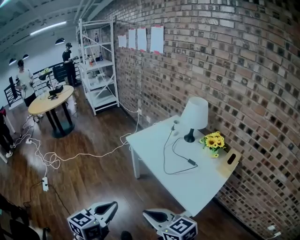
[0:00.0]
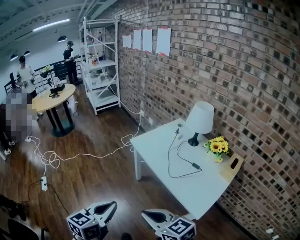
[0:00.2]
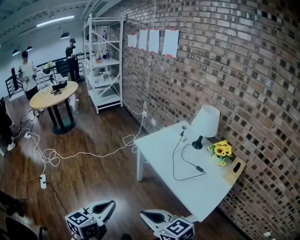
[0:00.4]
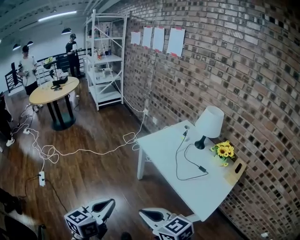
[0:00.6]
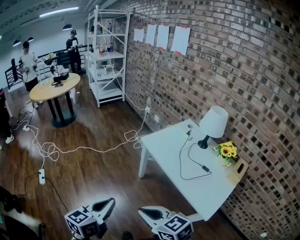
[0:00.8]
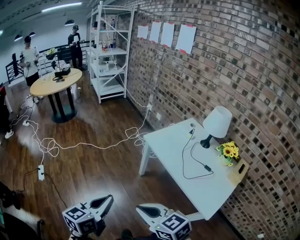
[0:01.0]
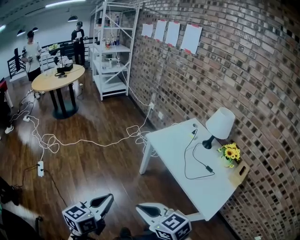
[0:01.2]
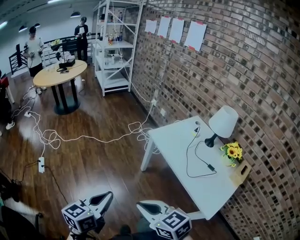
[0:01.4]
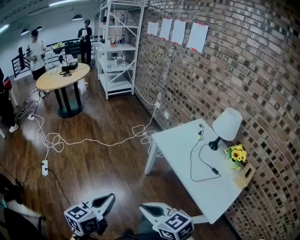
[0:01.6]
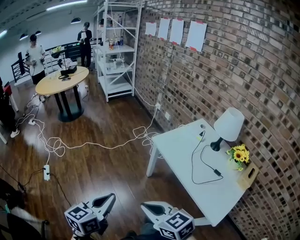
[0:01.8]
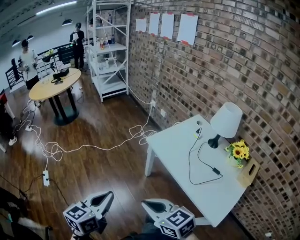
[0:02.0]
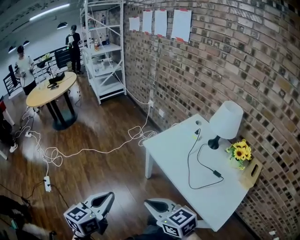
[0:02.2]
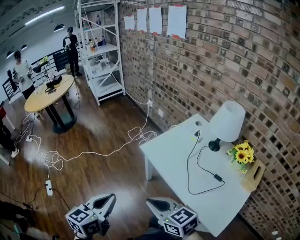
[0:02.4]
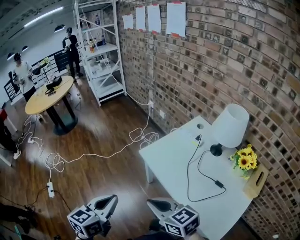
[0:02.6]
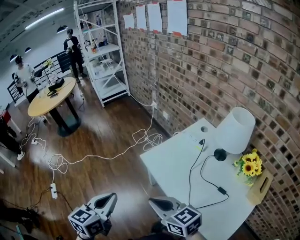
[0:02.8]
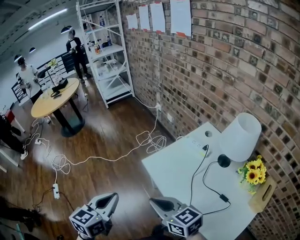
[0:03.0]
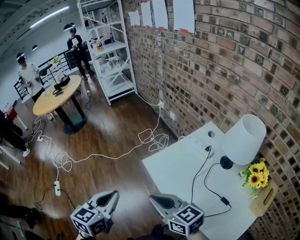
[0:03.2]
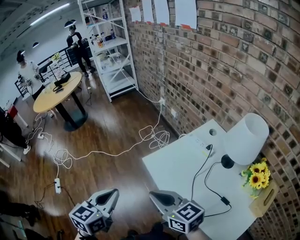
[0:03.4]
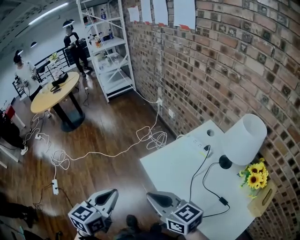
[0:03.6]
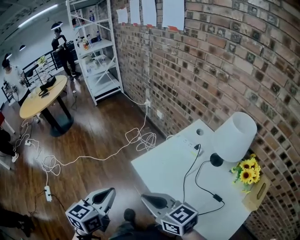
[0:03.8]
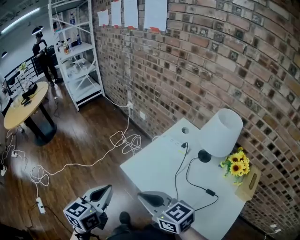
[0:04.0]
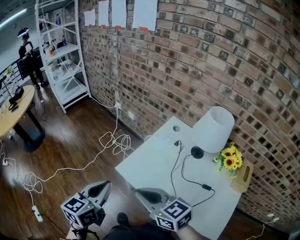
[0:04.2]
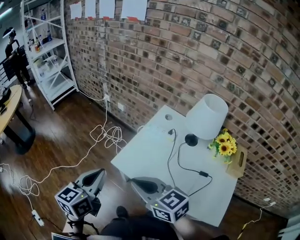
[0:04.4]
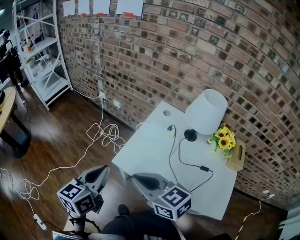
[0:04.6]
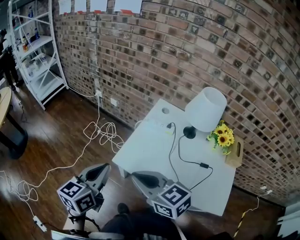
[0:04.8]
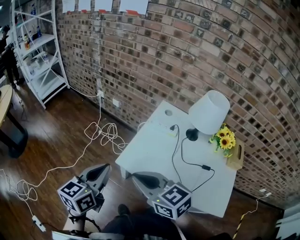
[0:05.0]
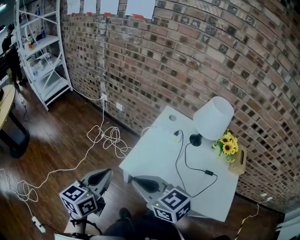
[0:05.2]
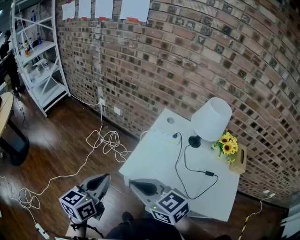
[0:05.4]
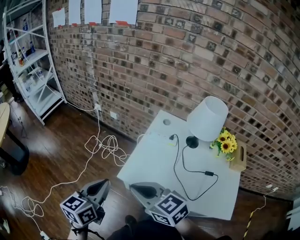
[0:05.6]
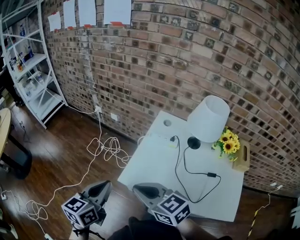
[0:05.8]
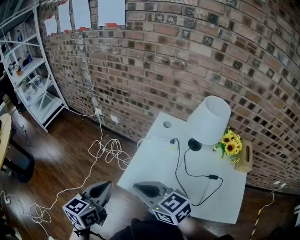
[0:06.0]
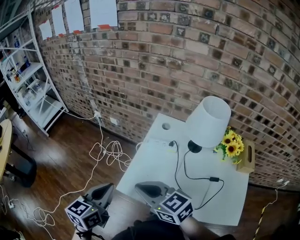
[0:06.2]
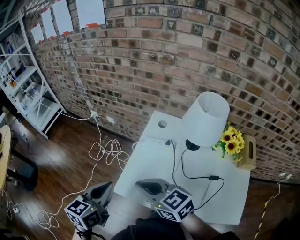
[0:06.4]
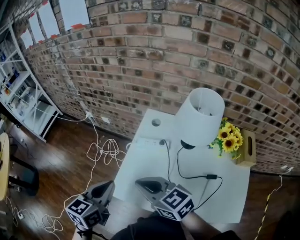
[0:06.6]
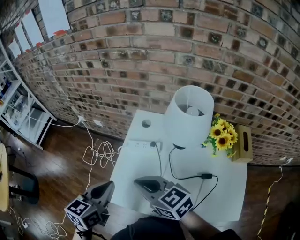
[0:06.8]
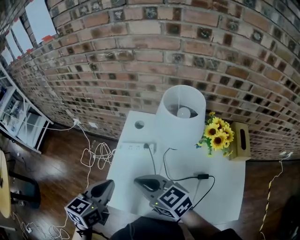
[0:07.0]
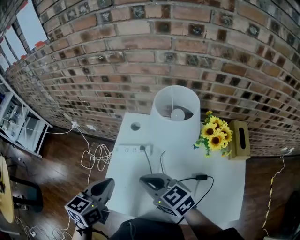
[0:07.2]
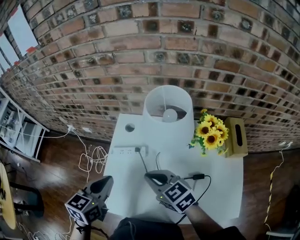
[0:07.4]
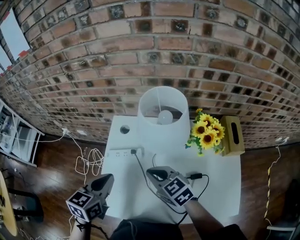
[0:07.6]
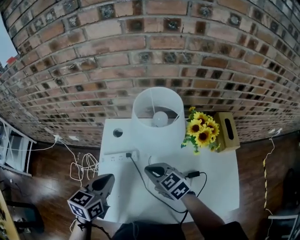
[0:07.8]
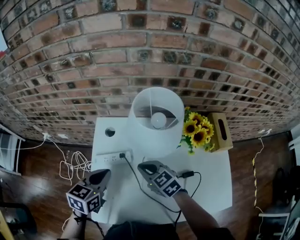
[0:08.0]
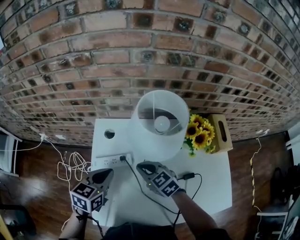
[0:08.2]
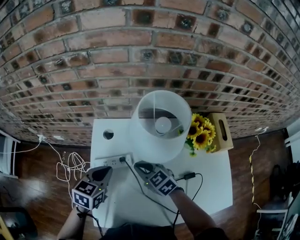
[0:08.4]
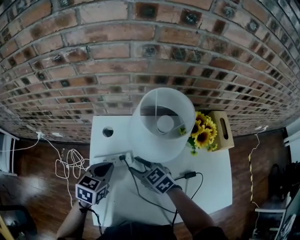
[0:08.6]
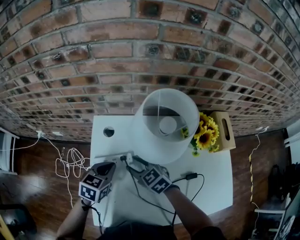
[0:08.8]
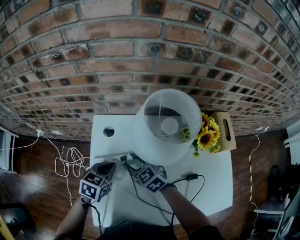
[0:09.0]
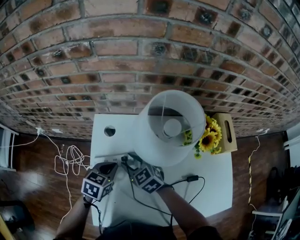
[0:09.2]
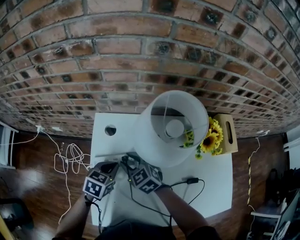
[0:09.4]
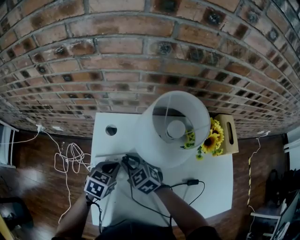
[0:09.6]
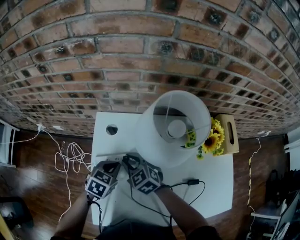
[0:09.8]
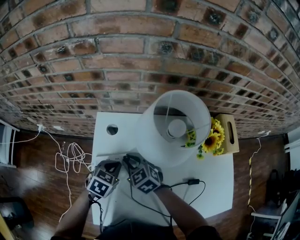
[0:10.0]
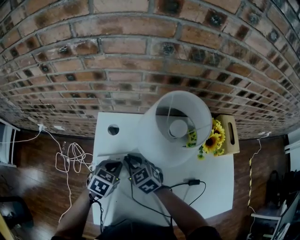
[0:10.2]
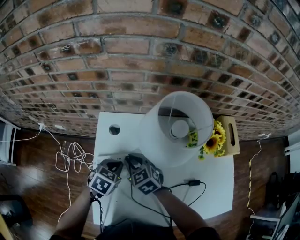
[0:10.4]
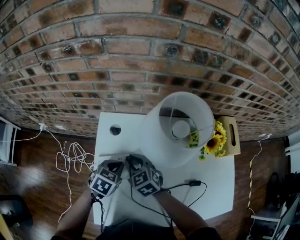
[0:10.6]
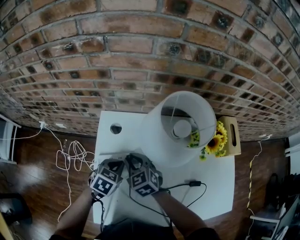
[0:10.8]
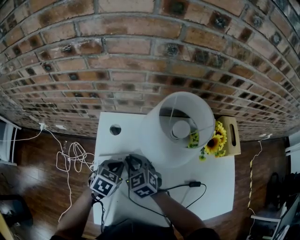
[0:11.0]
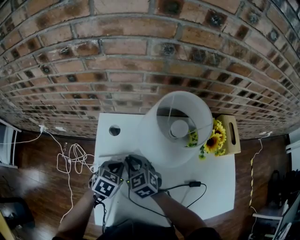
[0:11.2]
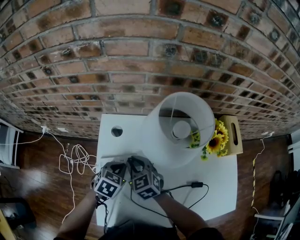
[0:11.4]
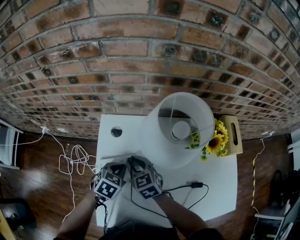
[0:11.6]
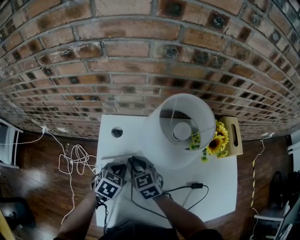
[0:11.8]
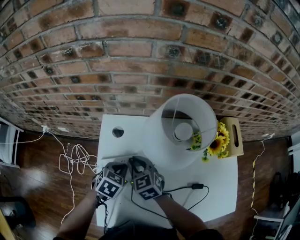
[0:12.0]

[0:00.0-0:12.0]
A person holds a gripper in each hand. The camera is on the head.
0:00.0 to 0:01.6: Both grippers move to the left and forward, some 20 cm.
0:01.6 to 0:03.0: Both grippers travel together forward and to the right, approximately 30 cm.
0:03.0 to 0:04.4: The left gripper goes roughly 15 cm forward, and swivels approximately 20 degrees. Meanwhile the right gripper moves forward, approximately 10 cm, and changes its angle by about 20 degrees.
0:04.4 to 0:06.0: Both grippers travel together forward, approximately 10 cm.
0:06.0 to 0:07.6: The left gripper shifts some 25 cm to the right and forward, and changes its angle by approximately 30 degrees. Meanwhile the right gripper is displaced to the right, forward and downward by some 30 cm, and changes its angle by approximately 20 degrees.
0:07.6 to 0:09.0: The left gripper heads downward and forward, covering roughly 20 cm, and swivels about 20 degrees. The right gripper travels forward, downward and to the left by about 15 cm, and opens its fingers.
0:09.0 to 0:10.4: The right gripper closes its fingers.
0:10.4 to 0:12.0: The grippers move only a little.

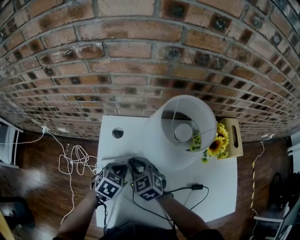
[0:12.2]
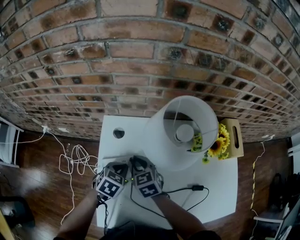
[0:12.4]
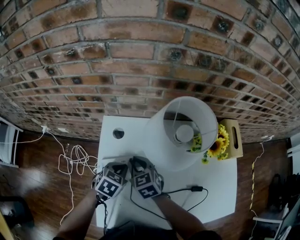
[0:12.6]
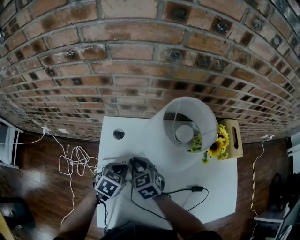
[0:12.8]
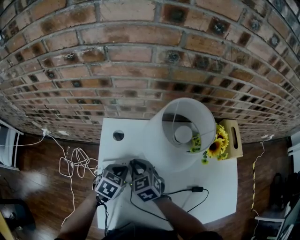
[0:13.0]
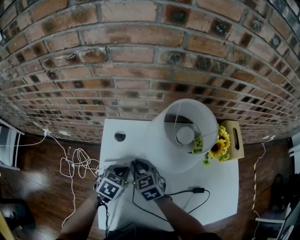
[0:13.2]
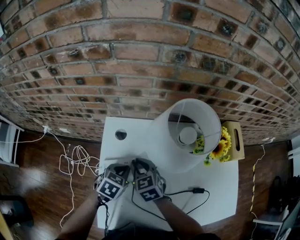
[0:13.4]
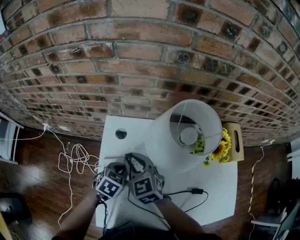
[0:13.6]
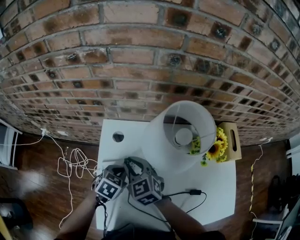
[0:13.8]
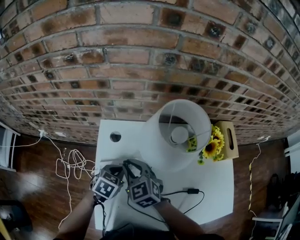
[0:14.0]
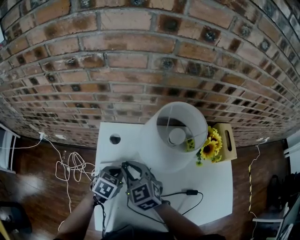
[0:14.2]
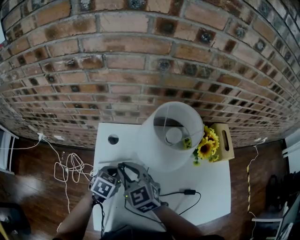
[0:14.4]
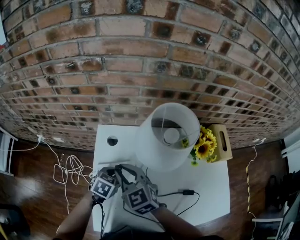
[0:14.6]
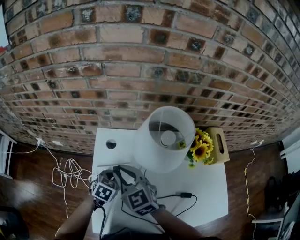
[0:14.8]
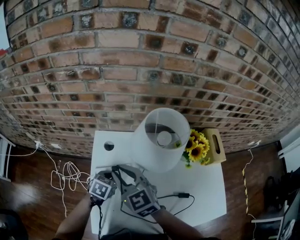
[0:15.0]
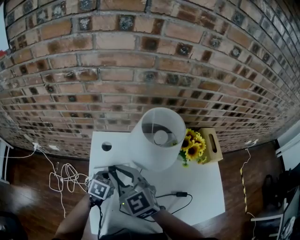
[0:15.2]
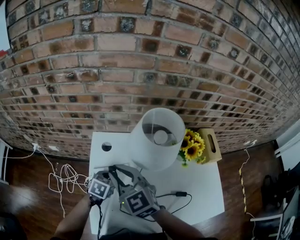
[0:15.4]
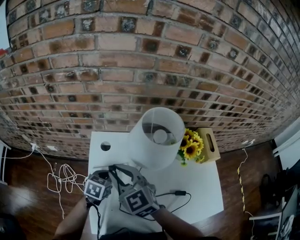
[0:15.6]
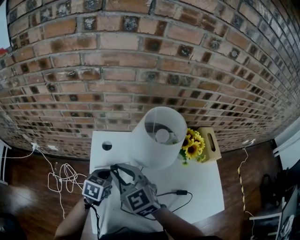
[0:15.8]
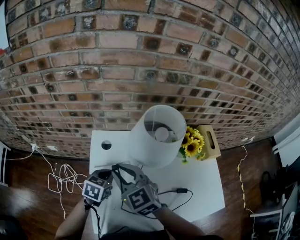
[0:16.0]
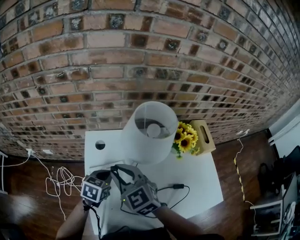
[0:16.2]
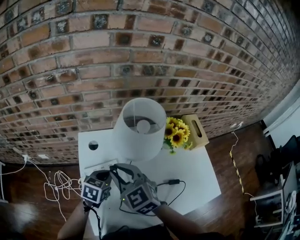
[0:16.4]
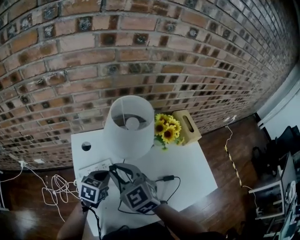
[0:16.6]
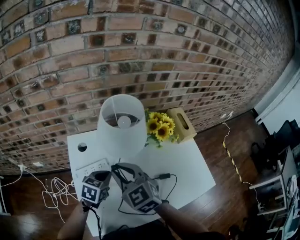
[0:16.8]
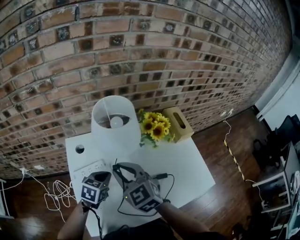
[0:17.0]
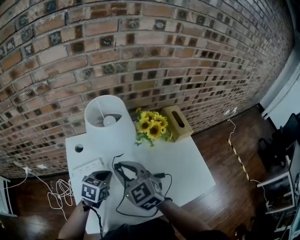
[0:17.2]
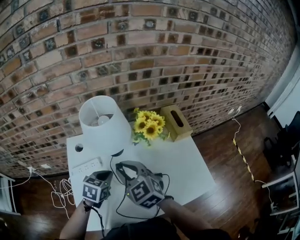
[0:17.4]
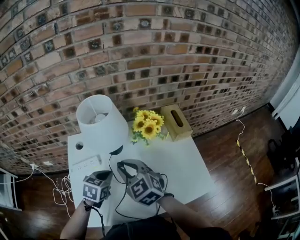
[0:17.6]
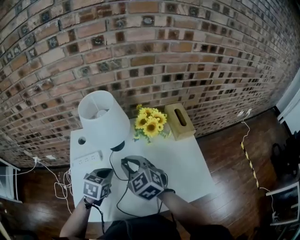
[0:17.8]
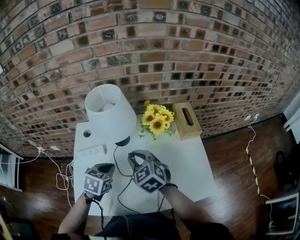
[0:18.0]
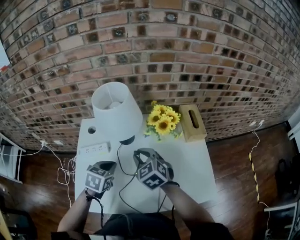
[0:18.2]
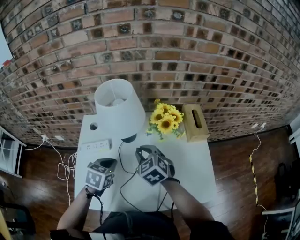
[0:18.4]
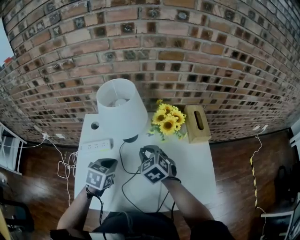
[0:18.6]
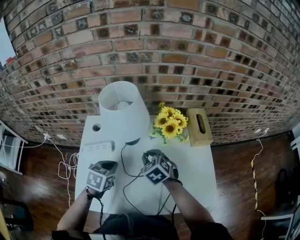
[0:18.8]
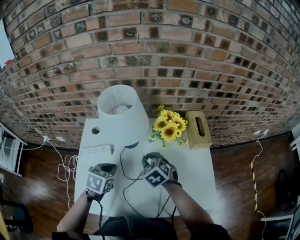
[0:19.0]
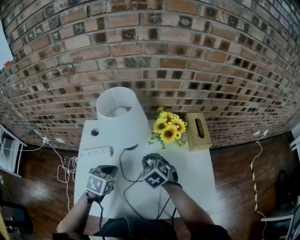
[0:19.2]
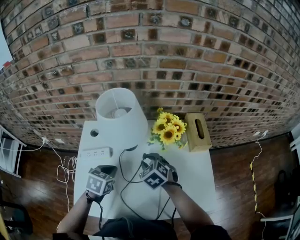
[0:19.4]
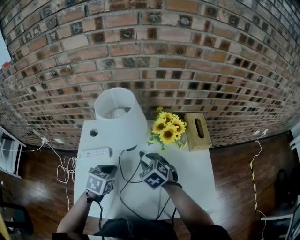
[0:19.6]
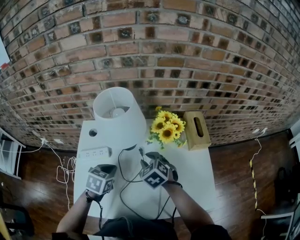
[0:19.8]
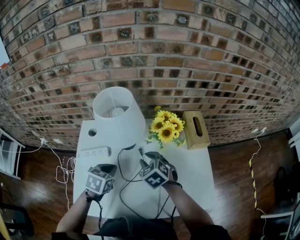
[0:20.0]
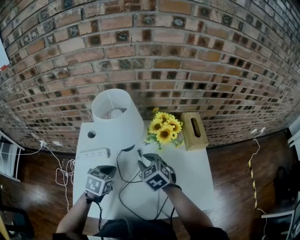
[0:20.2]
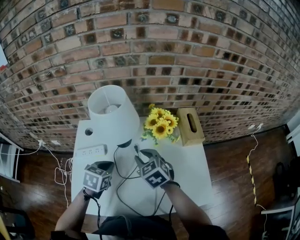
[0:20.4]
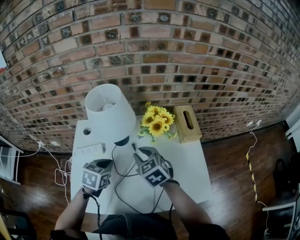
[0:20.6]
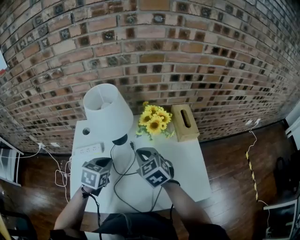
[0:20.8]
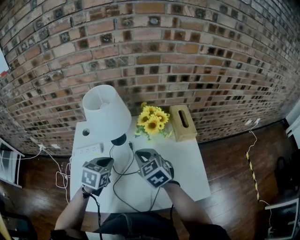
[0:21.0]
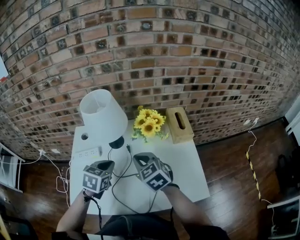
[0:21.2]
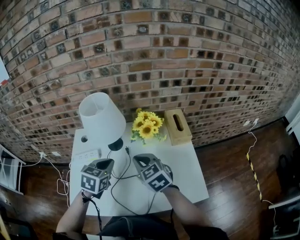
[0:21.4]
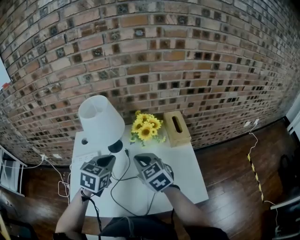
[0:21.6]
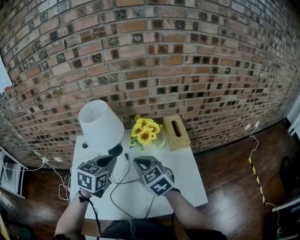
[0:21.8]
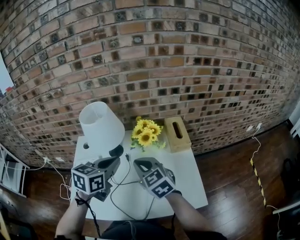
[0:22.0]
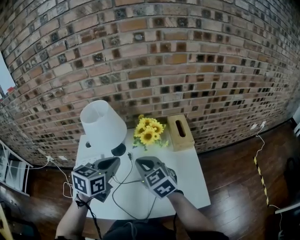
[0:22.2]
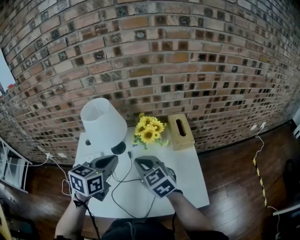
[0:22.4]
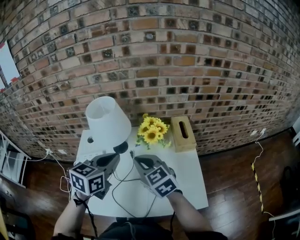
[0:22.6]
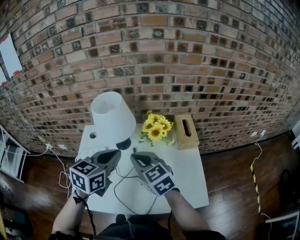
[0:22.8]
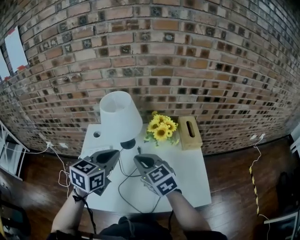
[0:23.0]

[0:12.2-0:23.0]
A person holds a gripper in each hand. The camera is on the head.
0:12.2 to 0:13.8: The right gripper shifts by some 5 cm.
0:13.8 to 0:15.2: The right gripper is displaced upward by some 15 cm.
0:15.2 to 0:16.8: The right gripper travels to the right by some 10 cm, while the left gripper moves to the right and upward, approximately 10 cm.
0:16.8 to 0:18.4: The right gripper goes about 15 cm to the right and downward. Meanwhile the left gripper is displaced to the right by approximately 5 cm.
0:18.4 to 0:20.0: The grippers make only small movements.
0:20.0 to 0:21.4: The left gripper heads upward and to the right, covering about 10 cm. Meanwhile the right gripper goes some 10 cm upward and backward, rotates about 20 degrees, and closes its fingers.
0:21.4 to 0:23.0: The right gripper shifts about 5 cm upward, while the left gripper moves upward, about 10 cm.

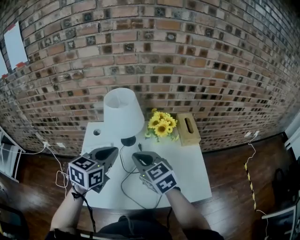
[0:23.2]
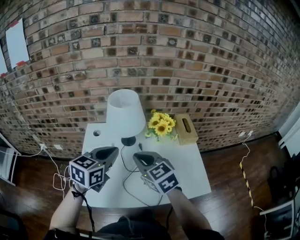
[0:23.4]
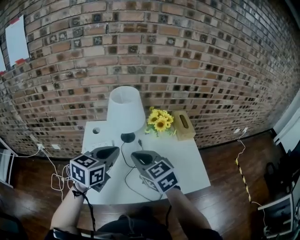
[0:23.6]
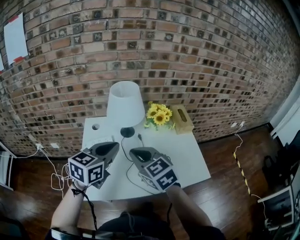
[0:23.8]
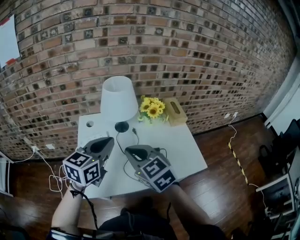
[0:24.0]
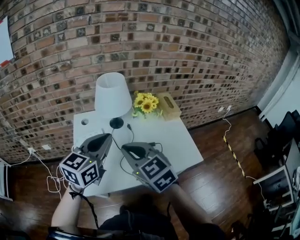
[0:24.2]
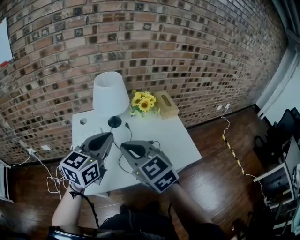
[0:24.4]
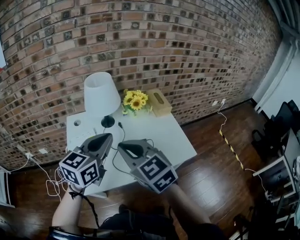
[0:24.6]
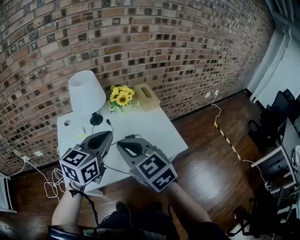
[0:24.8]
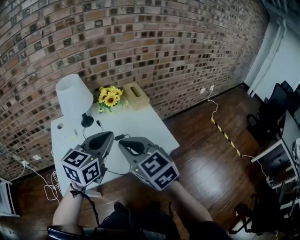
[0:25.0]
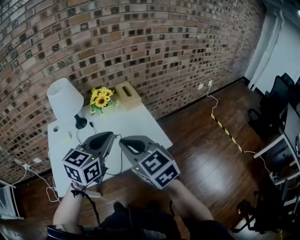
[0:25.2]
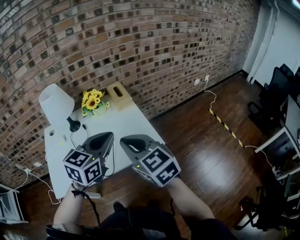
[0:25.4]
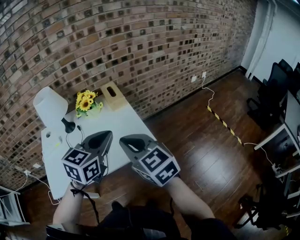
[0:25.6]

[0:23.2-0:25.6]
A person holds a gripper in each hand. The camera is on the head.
0:23.2 to 0:24.4: The right gripper heads backward, upward and to the left, covering approximately 15 cm, while the left gripper travels backward and upward by approximately 10 cm.
0:24.4 to 0:25.6: The two grippers go roughly 35 cm to the right.
